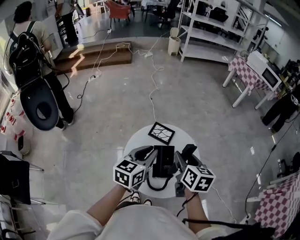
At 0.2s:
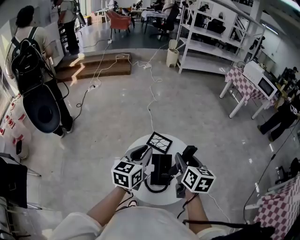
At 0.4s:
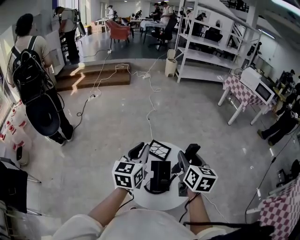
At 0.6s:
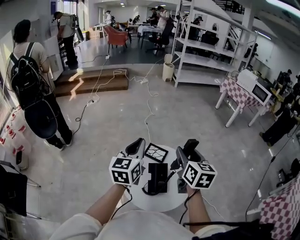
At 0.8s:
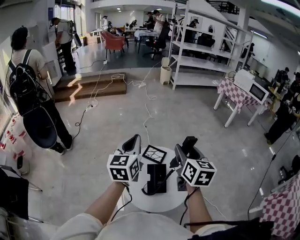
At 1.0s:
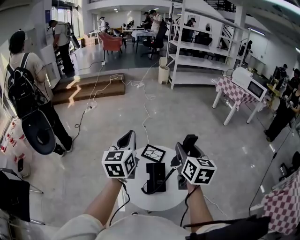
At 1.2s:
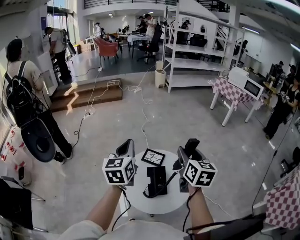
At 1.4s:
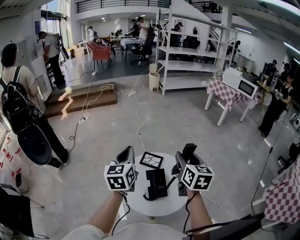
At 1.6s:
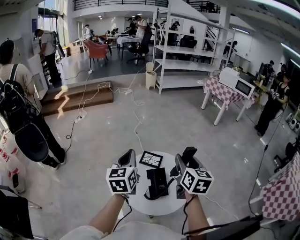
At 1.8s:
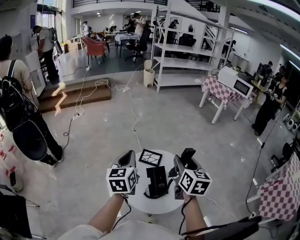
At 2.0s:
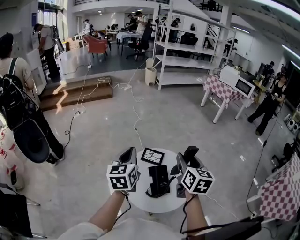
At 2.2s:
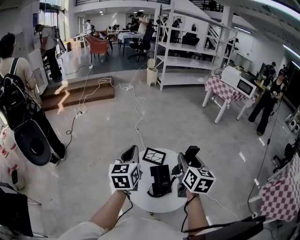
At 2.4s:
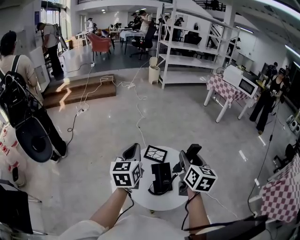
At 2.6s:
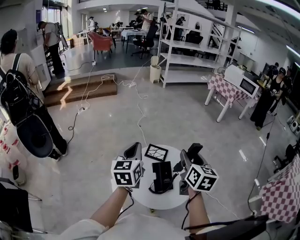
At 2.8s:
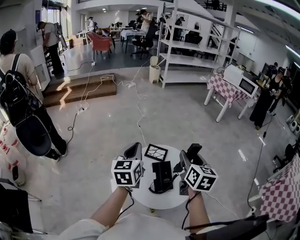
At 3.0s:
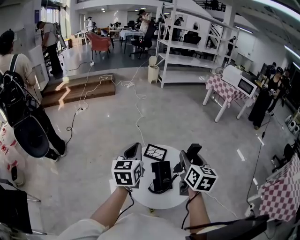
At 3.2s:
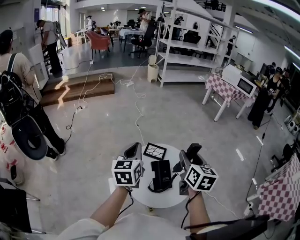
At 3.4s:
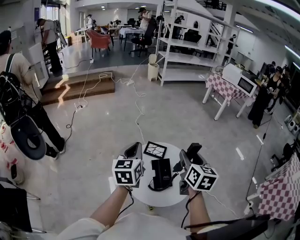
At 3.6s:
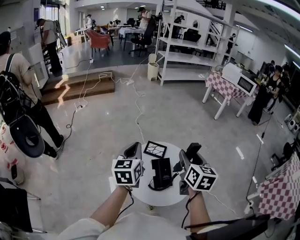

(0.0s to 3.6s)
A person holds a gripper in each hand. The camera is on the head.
0.0s - 1.8s: The right gripper shifts some 10 cm upward. Meanwhile the left gripper shifts roughly 10 cm upward and to the left.
1.8s - 3.6s: The grippers make only small movements.

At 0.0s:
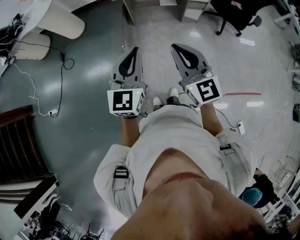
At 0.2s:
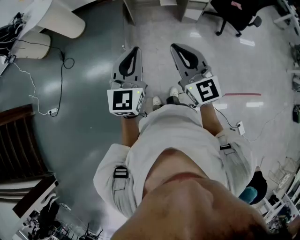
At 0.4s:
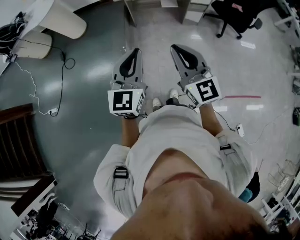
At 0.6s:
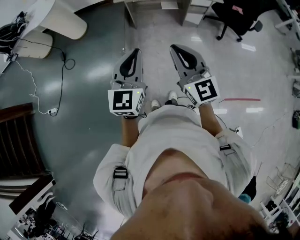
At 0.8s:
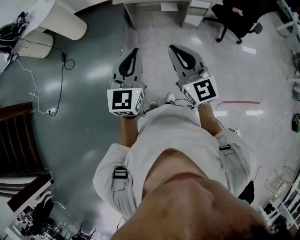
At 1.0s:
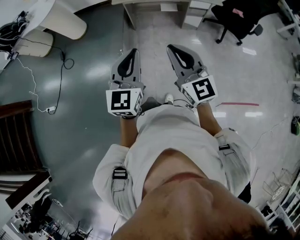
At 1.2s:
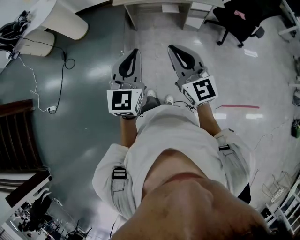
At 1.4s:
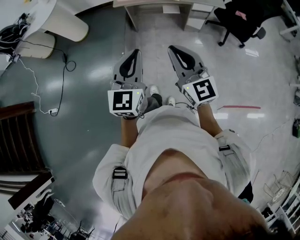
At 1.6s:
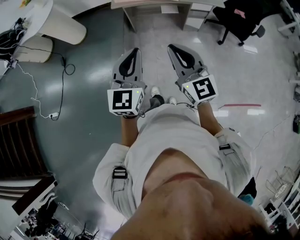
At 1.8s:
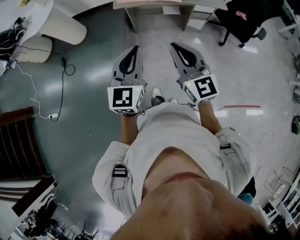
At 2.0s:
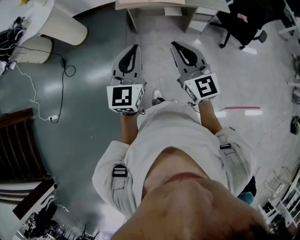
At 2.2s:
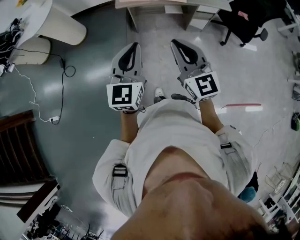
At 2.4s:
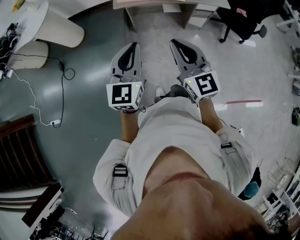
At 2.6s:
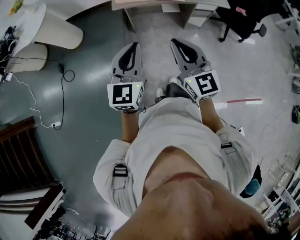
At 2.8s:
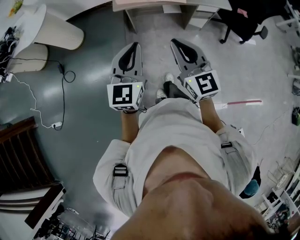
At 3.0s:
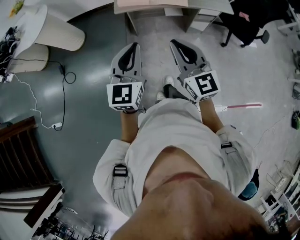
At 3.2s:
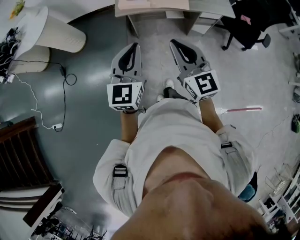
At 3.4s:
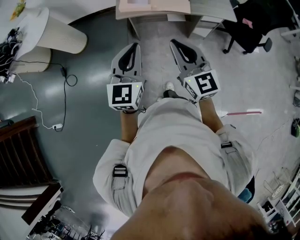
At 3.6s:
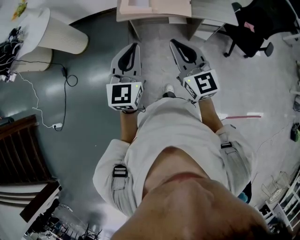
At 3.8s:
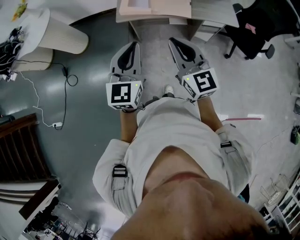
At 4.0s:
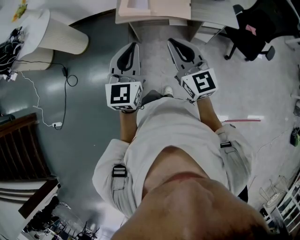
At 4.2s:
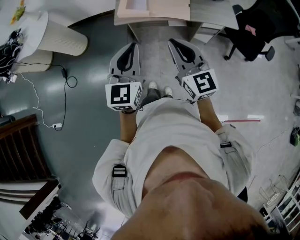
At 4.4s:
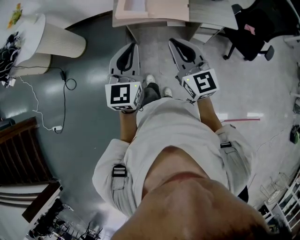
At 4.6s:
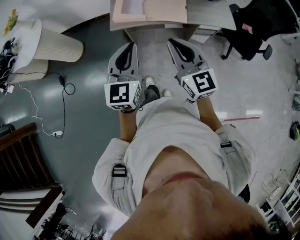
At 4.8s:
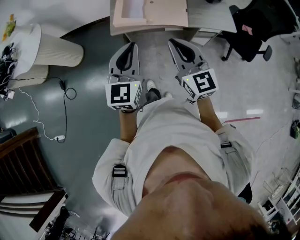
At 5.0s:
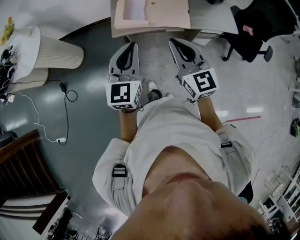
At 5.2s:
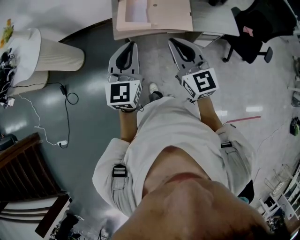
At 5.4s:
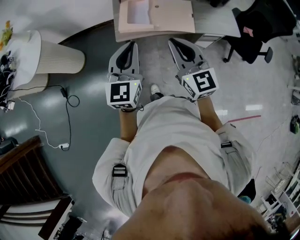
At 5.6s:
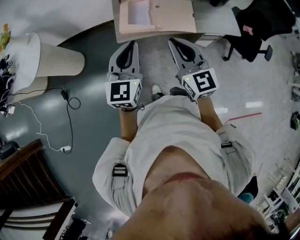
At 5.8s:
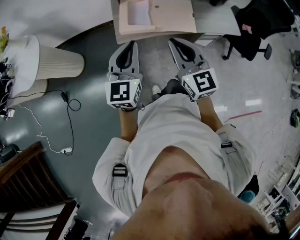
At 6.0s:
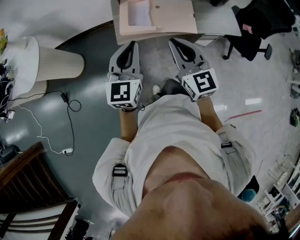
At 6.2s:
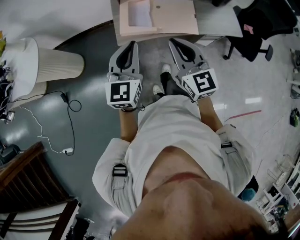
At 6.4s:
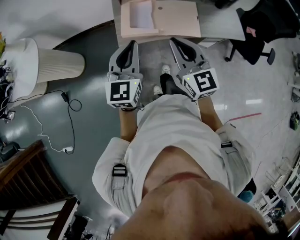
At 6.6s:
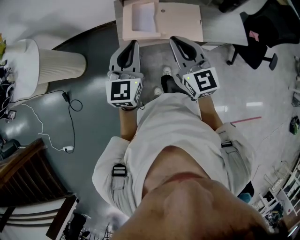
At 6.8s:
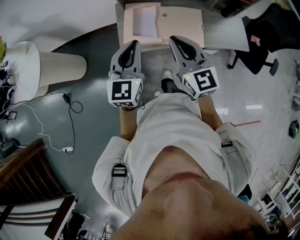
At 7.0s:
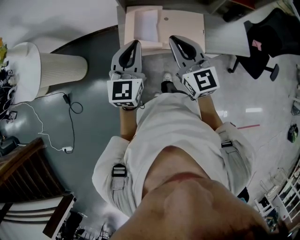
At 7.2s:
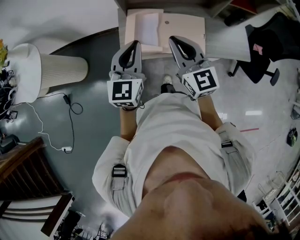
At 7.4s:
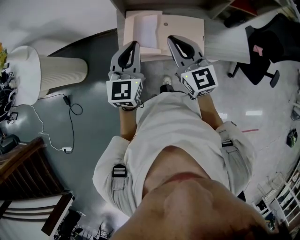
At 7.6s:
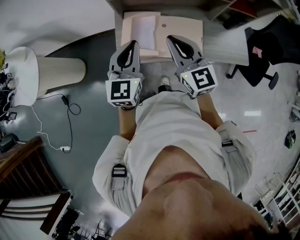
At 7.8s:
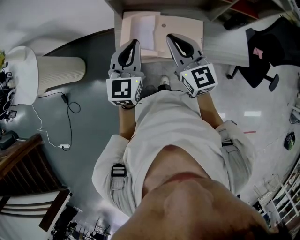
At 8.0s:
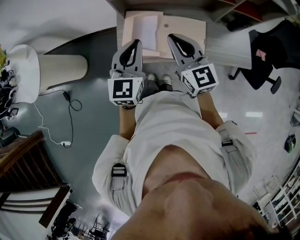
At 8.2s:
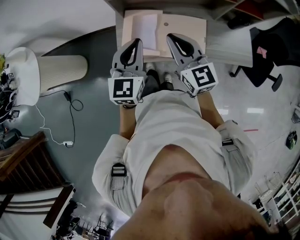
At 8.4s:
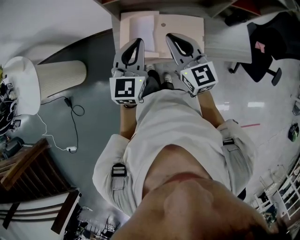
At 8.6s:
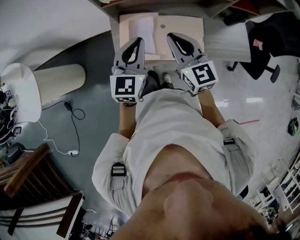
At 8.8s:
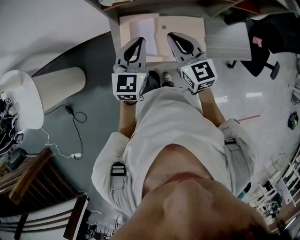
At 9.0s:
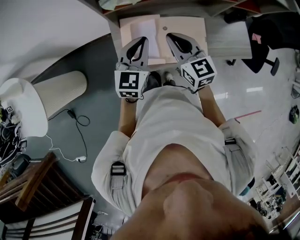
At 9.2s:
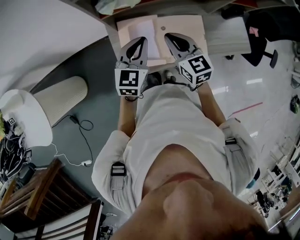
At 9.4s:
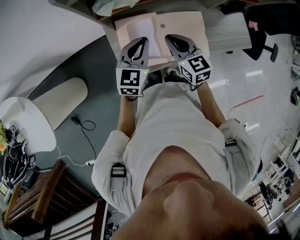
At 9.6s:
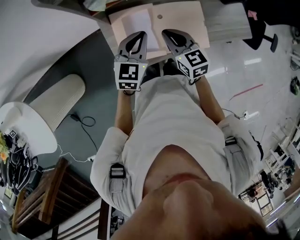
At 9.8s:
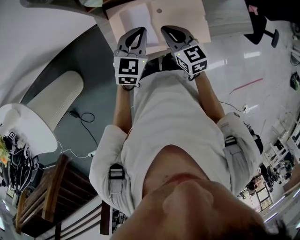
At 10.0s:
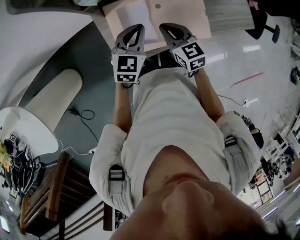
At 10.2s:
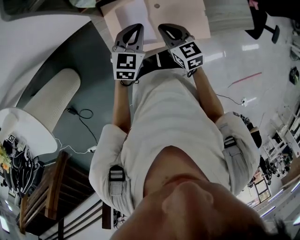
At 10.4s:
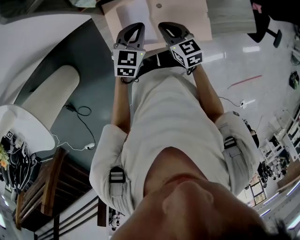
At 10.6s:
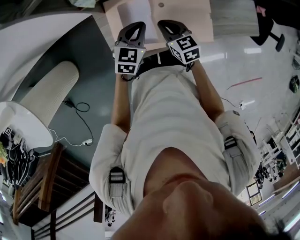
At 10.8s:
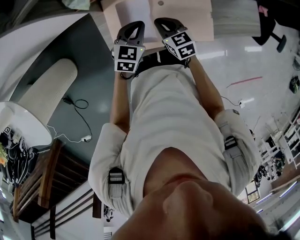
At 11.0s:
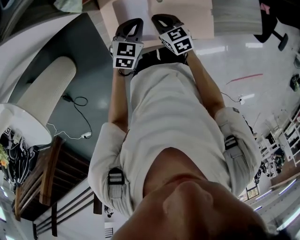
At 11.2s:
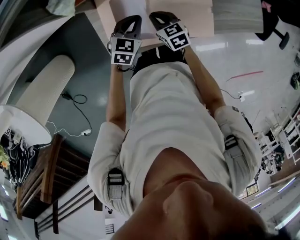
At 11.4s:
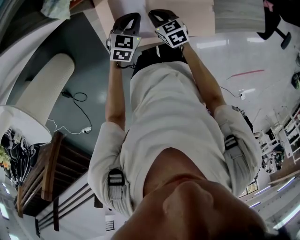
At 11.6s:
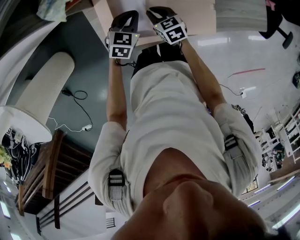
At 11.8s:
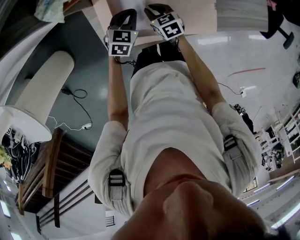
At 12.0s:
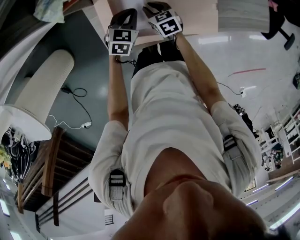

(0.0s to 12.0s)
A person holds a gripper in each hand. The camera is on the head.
0.0s - 1.6s: Both grippers travel together forward and to the right, approximately 10 cm.
1.6s - 3.0s: The grippers both shift forward and to the left by some 20 cm.
3.0s - 4.4s: The two grippers go approximately 15 cm forward and to the right.
4.4s - 6.0s: Both grippers move forward and to the left, some 20 cm.
6.0s - 7.6s: Both grippers move forward, roughly 20 cm.
7.6s - 9.0s: Both grippers travel together forward and downward, some 15 cm.
9.0s - 10.4s: The two grippers go some 20 cm downward. The right gripper changes its angle by approximately 20 degrees.
10.4s - 12.0s: Both grippers travel together downward, approximately 15 cm.

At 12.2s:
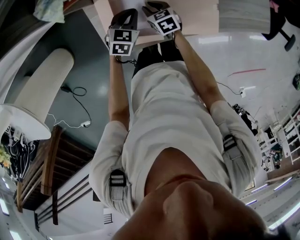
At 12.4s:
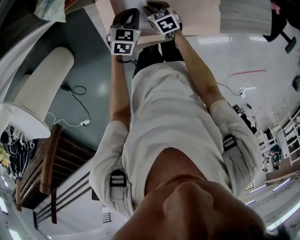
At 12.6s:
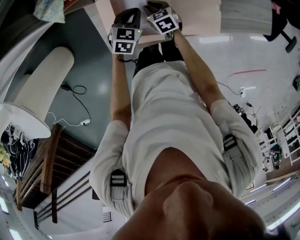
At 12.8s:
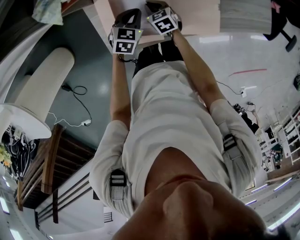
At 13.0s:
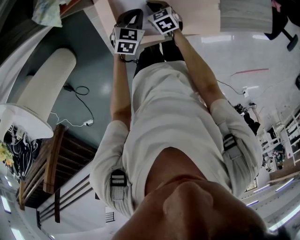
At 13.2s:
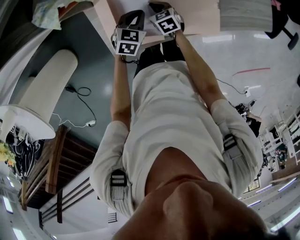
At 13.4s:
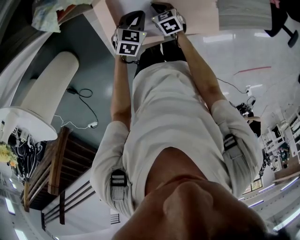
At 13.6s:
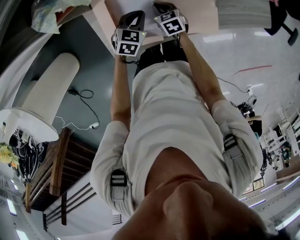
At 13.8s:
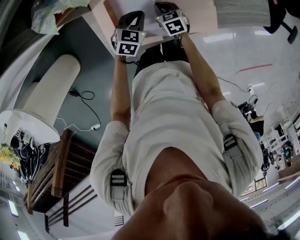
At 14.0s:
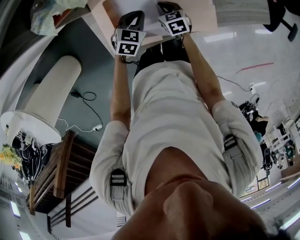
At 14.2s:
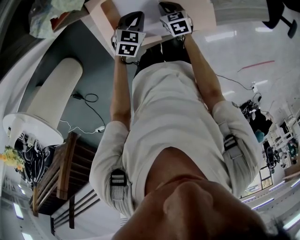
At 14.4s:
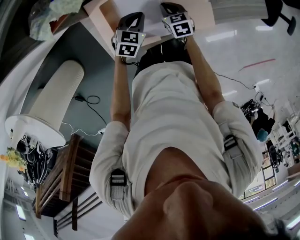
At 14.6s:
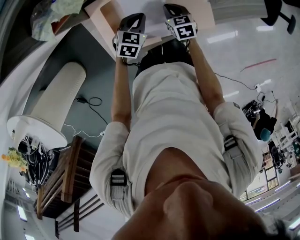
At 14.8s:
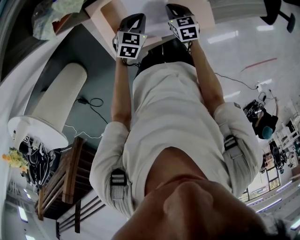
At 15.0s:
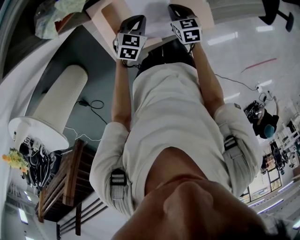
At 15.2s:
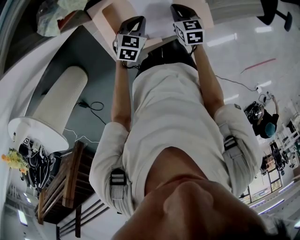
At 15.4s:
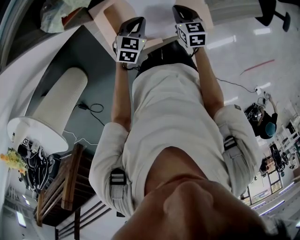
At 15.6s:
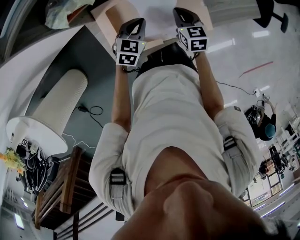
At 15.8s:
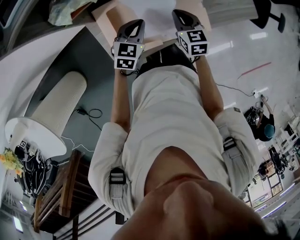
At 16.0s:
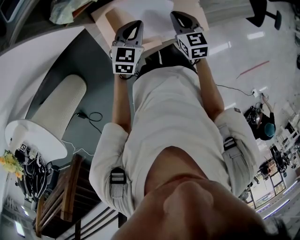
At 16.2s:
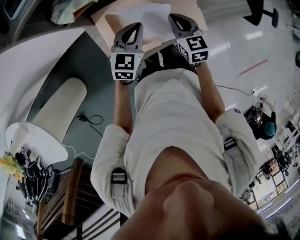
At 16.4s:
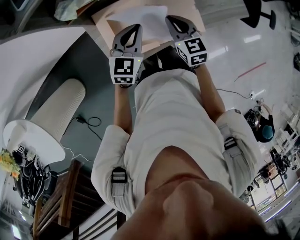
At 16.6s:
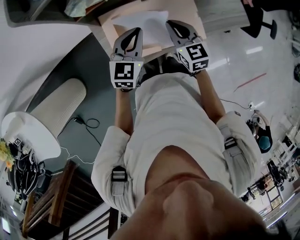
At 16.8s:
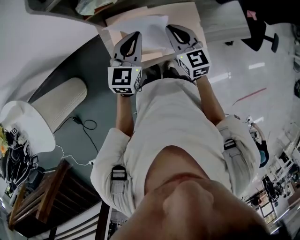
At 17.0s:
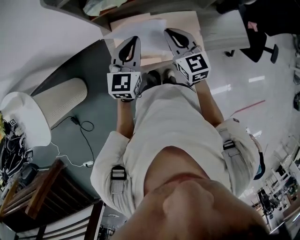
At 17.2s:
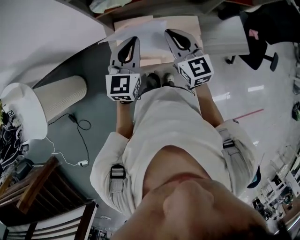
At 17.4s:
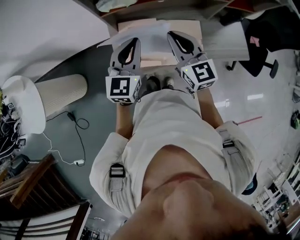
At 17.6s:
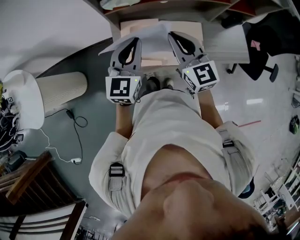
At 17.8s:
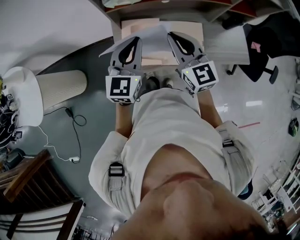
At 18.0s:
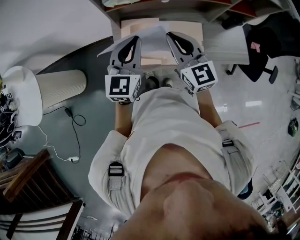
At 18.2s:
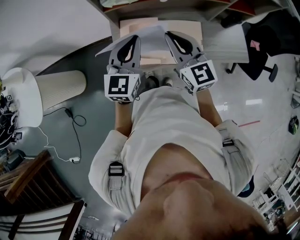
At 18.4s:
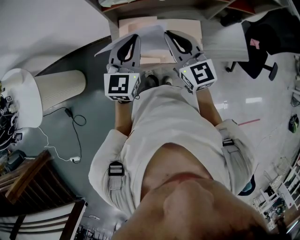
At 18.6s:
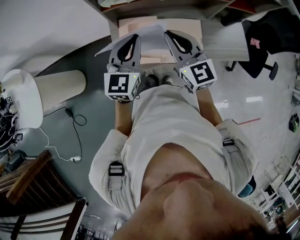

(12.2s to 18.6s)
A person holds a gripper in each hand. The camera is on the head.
12.2s - 13.8s: The right gripper travels to the right by approximately 5 cm, and closes its fingers.
13.8s - 15.4s: The left gripper changes place by approximately 5 cm. Meanwhile the right gripper moves upward and to the right, approximately 15 cm, and changes its angle by roughly 20 degrees.
15.4s - 17.0s: The two grippers go roughly 25 cm upward. The left gripper rotates roughly 40 degrees. Meanwhile the right gripper changes its angle by some 30 degrees.
17.0s - 18.6s: Both grippers move upward, approximately 10 cm.

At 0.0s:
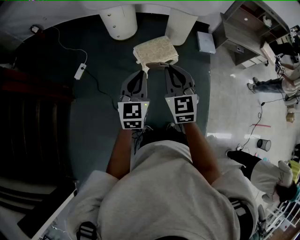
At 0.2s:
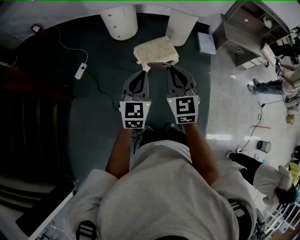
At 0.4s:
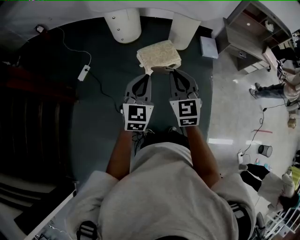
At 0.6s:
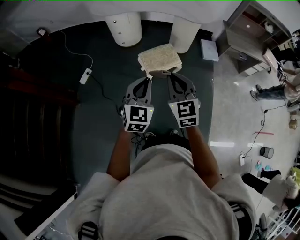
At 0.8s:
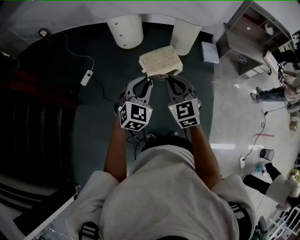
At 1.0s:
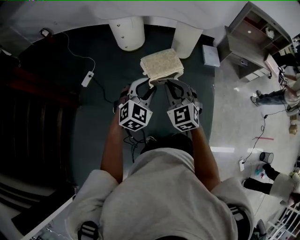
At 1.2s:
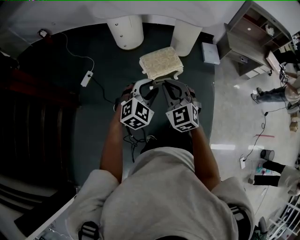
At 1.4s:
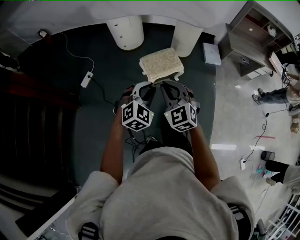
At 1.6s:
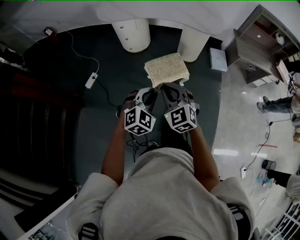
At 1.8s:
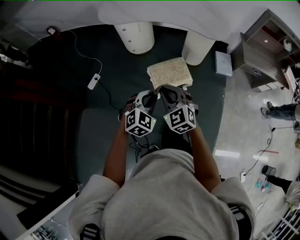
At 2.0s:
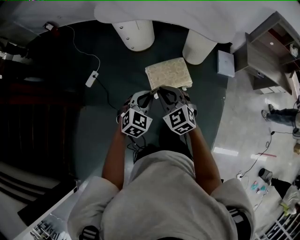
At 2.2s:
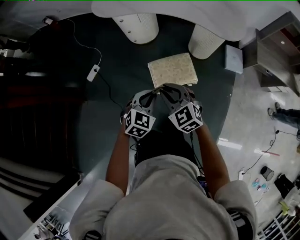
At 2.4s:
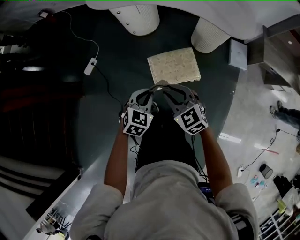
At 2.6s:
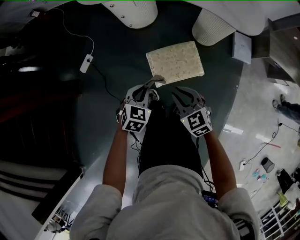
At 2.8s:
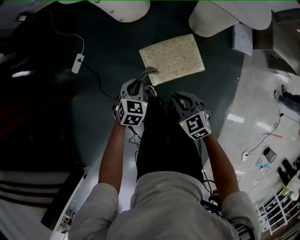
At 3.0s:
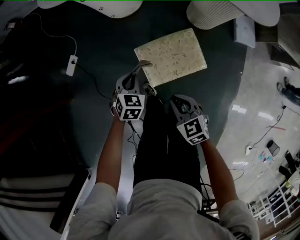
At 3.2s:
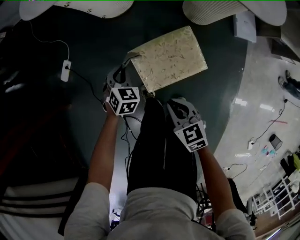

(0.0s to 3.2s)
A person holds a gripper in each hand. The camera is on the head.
0.0s - 1.6s: The right gripper travels forward and downward by about 10 cm, and swivels approximately 20 degrees, while the left gripper is displaced downward and forward by some 10 cm, turns by roughly 40 degrees, and opens, then closes once more.
1.6s - 3.2s: Both grippers travel together downward and forward, approximately 50 cm. The left gripper rotates about 40 degrees. The right gripper swivels approximately 50 degrees.
